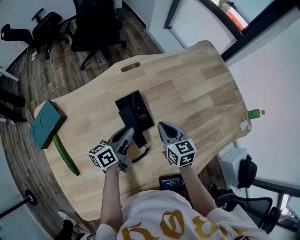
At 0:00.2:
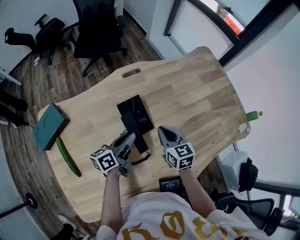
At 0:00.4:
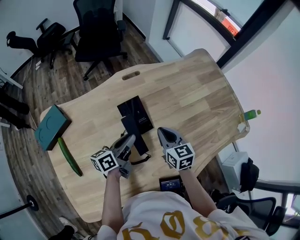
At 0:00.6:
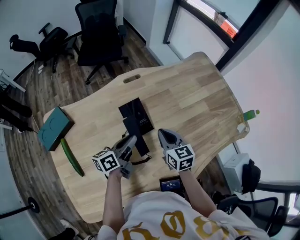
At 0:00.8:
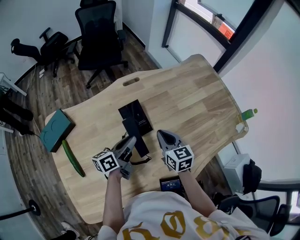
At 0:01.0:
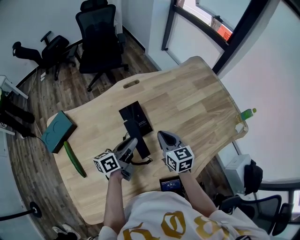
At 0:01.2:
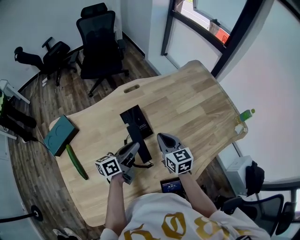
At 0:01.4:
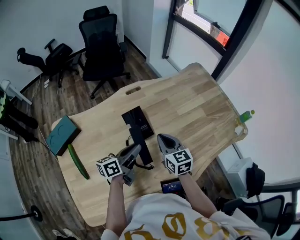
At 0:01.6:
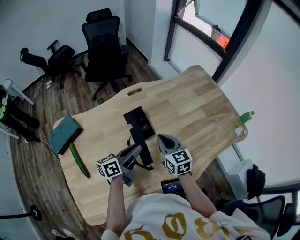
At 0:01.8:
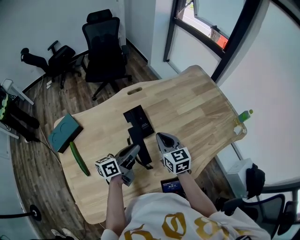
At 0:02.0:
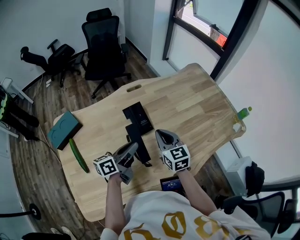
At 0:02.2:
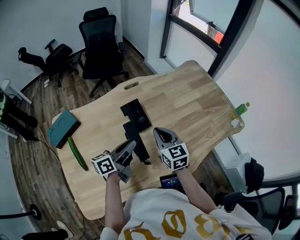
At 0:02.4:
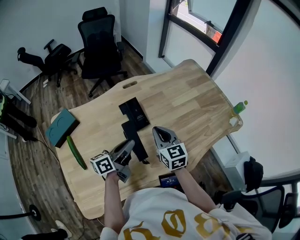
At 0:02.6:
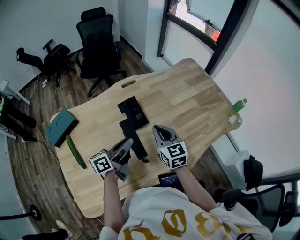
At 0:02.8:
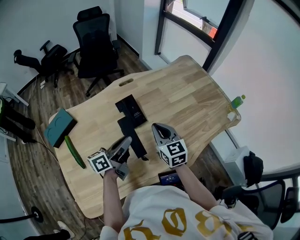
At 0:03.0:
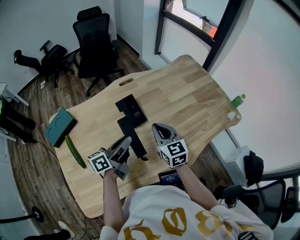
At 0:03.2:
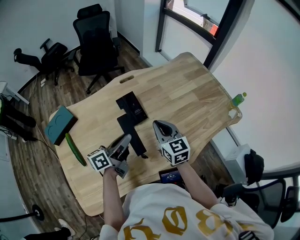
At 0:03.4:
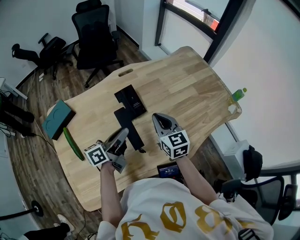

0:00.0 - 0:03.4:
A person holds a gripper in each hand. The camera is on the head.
0:00.0 - 0:01.6: The left gripper moves backward and upward, about 10 cm. Meanwhile the right gripper goes about 10 cm upward and backward.
0:01.6 - 0:03.4: The grippers move only a little.

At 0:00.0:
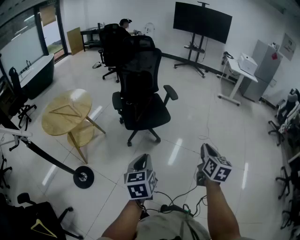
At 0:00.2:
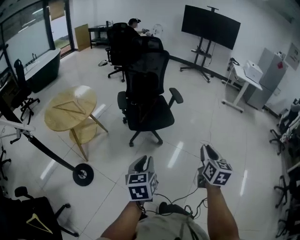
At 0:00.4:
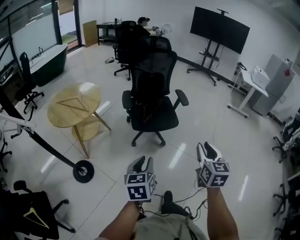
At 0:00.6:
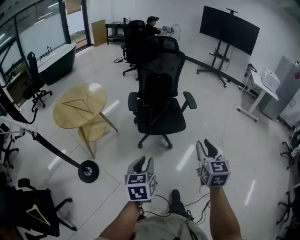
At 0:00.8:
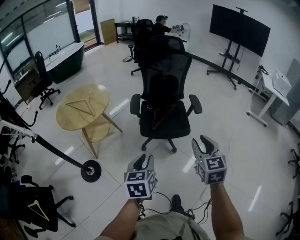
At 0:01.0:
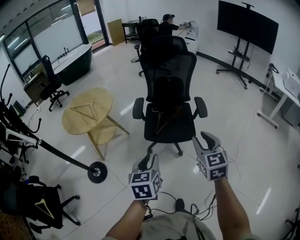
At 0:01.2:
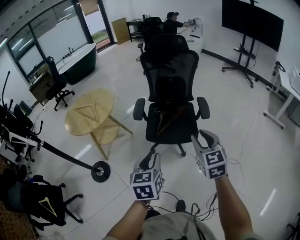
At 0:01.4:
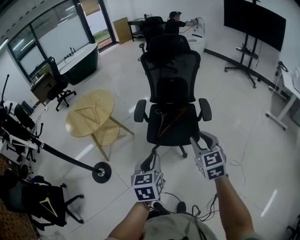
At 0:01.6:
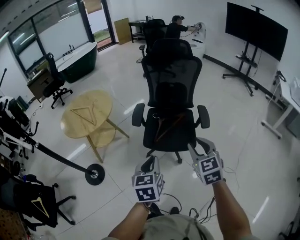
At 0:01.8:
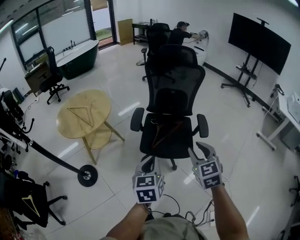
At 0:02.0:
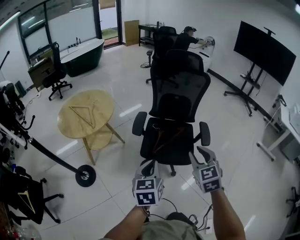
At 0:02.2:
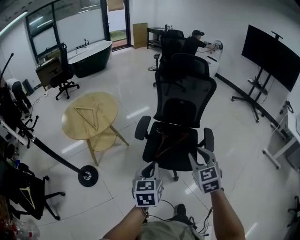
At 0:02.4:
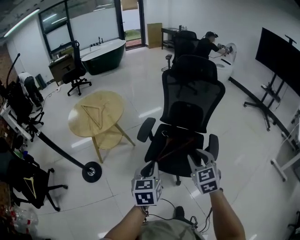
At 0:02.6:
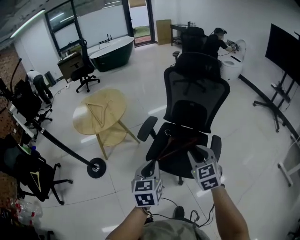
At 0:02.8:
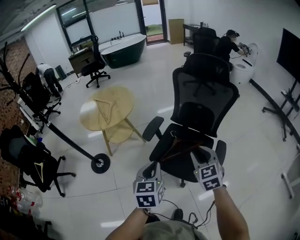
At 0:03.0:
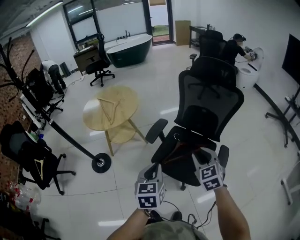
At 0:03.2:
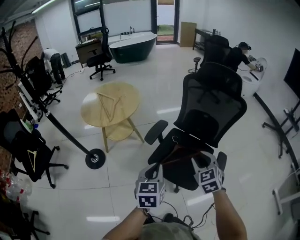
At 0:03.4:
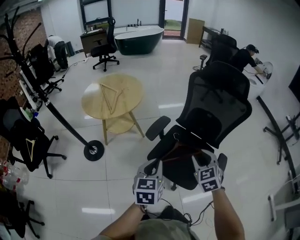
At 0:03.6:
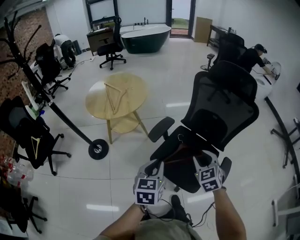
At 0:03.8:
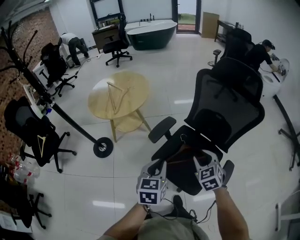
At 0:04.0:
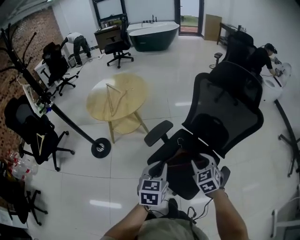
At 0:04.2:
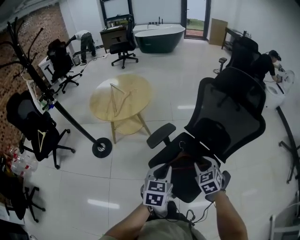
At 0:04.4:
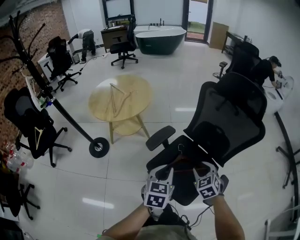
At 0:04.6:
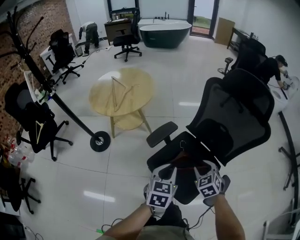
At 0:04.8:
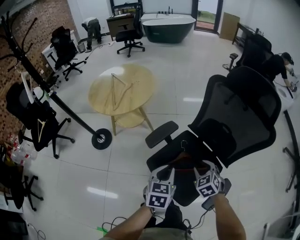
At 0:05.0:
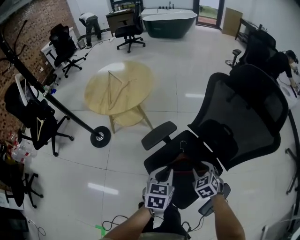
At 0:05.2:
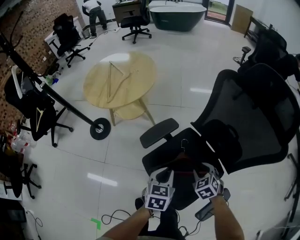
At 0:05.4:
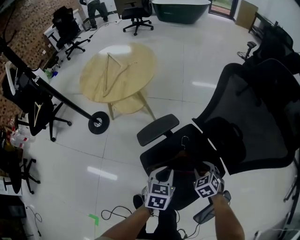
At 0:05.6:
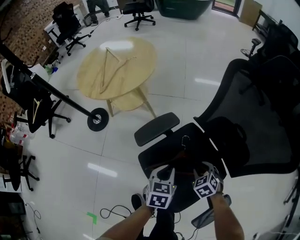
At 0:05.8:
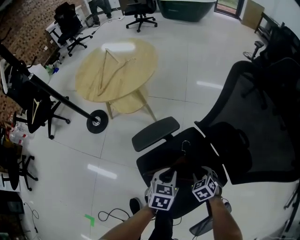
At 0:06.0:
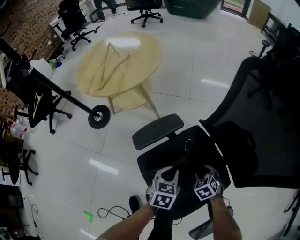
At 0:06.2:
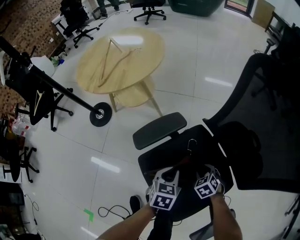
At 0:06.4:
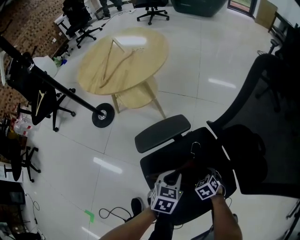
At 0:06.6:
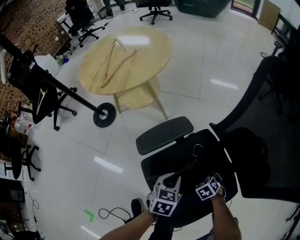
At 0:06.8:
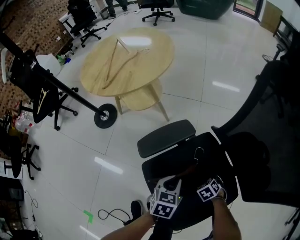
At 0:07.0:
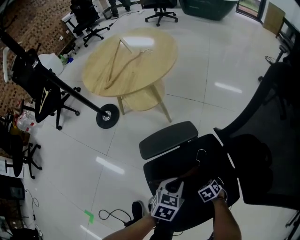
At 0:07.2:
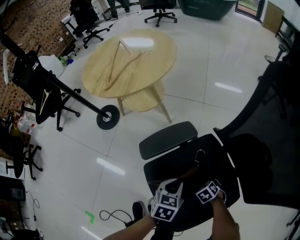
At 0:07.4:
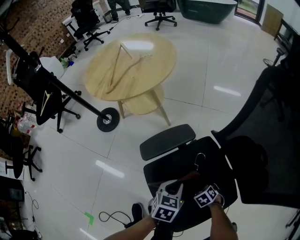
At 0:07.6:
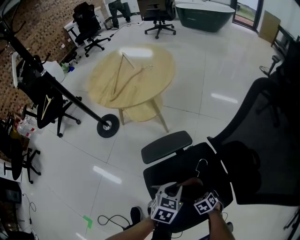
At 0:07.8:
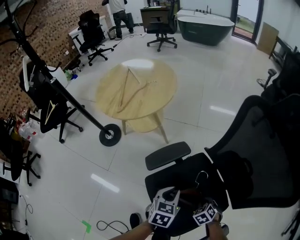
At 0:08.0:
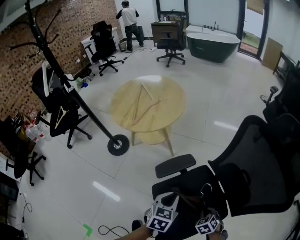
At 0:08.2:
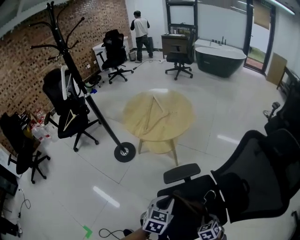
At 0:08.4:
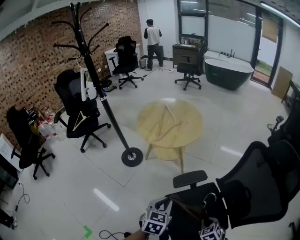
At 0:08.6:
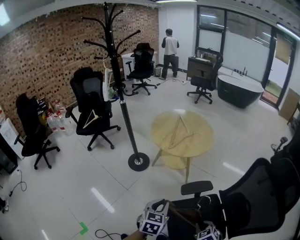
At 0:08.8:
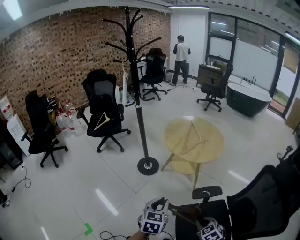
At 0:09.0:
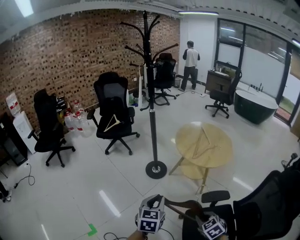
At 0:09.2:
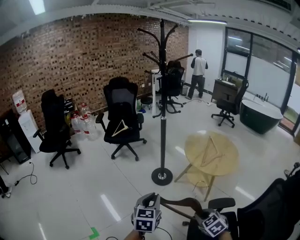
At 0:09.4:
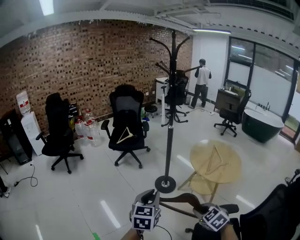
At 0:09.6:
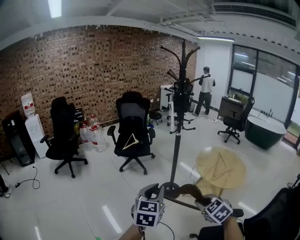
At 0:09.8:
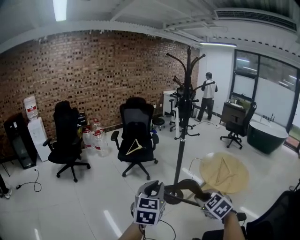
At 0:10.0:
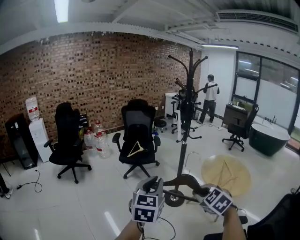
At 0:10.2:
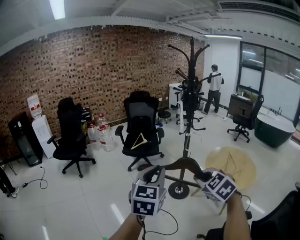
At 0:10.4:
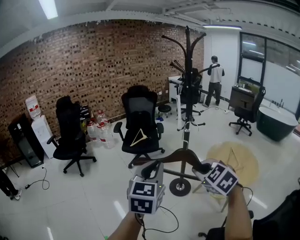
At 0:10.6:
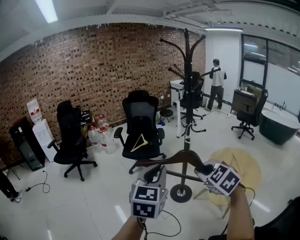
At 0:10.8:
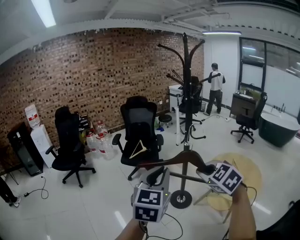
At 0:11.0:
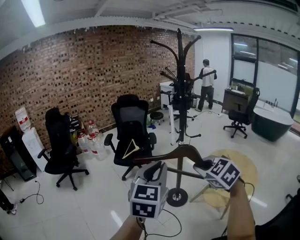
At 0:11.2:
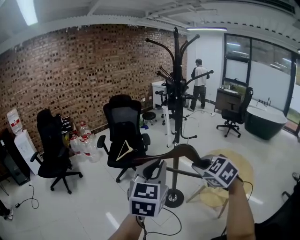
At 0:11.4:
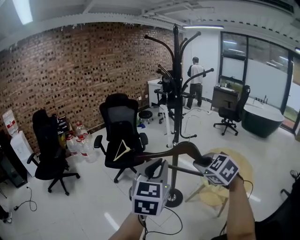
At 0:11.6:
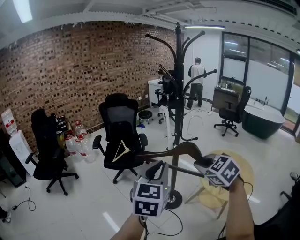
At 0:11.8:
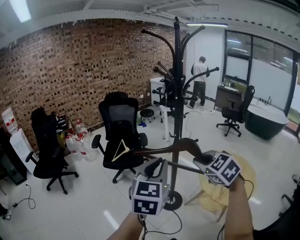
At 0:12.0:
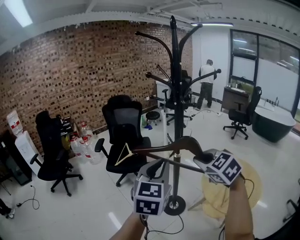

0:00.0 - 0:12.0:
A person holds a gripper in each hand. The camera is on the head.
0:00.0 - 0:01.6: Both grippers are carried some 50 cm. The left gripper rotates some 20 degrees; the right gripper swivels roughly 50 degrees, and opens its fingers.
0:01.6 - 0:03.0: The grippers both shift forward and to the right by some 30 cm. The left gripper changes its angle by approximately 20 degrees. Meanwhile the right gripper changes its angle by approximately 30 degrees.
0:03.0 - 0:04.4: The left gripper is displaced forward and to the right by approximately 25 cm. The right gripper moves forward and downward, roughly 25 cm, and changes its angle by approximately 20 degrees.
0:04.4 - 0:06.0: The two grippers go about 60 cm downward and forward. The left gripper rotates approximately 20 degrees; the right gripper changes its angle by approximately 30 degrees.
0:06.0 - 0:07.6: The left gripper reaches some 10 cm downward, then returns. Meanwhile the right gripper is displaced downward by approximately 5 cm, and closes.
0:07.6 - 0:09.0: Both grippers are carried roughly 60 cm. The right gripper swivels approximately 40 degrees; the left gripper swivels some 50 degrees.
0:09.0 - 0:10.4: The left gripper moves to the left, upward and forward, some 50 cm, and turns by approximately 20 degrees, while the right gripper shifts about 60 cm forward, to the left and upward, and swivels approximately 30 degrees.
0:10.4 - 0:12.0: The pair of grippers is taken forward, roughly 50 cm.

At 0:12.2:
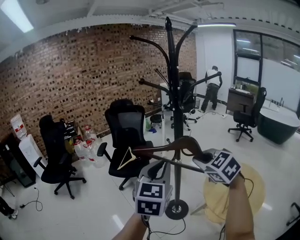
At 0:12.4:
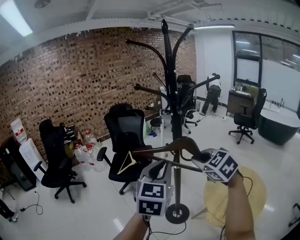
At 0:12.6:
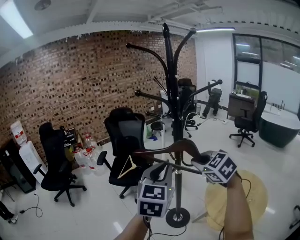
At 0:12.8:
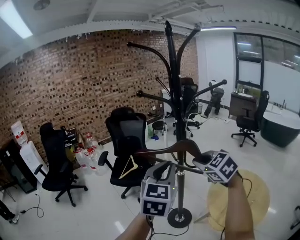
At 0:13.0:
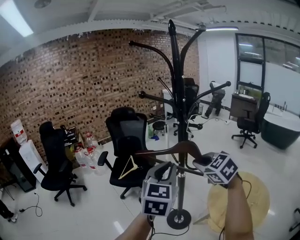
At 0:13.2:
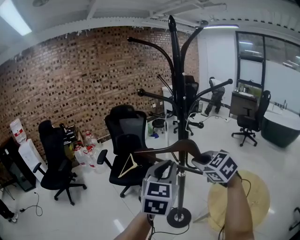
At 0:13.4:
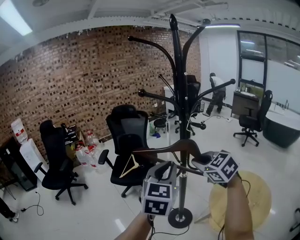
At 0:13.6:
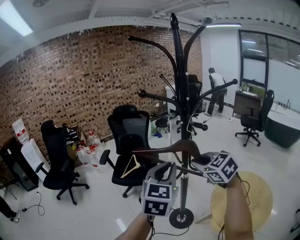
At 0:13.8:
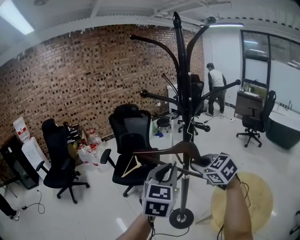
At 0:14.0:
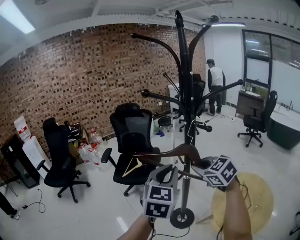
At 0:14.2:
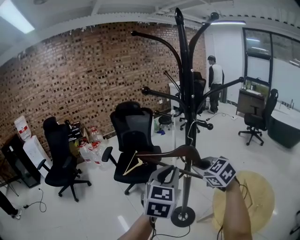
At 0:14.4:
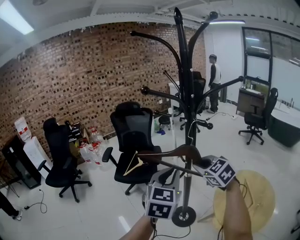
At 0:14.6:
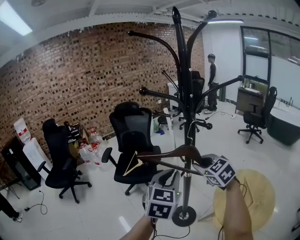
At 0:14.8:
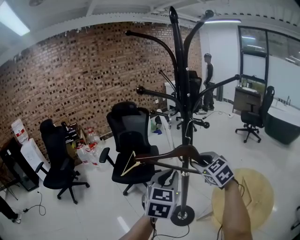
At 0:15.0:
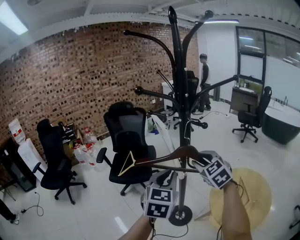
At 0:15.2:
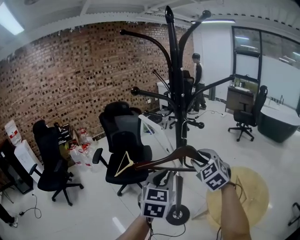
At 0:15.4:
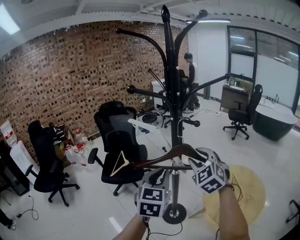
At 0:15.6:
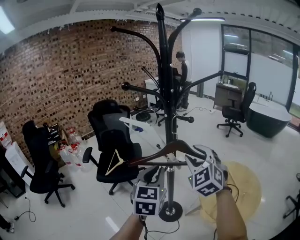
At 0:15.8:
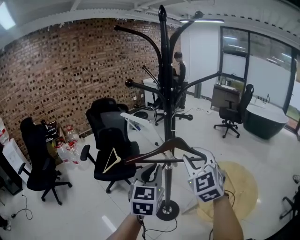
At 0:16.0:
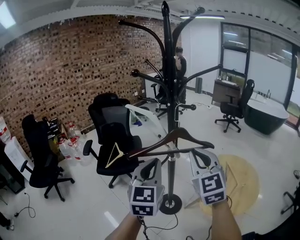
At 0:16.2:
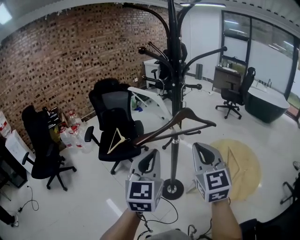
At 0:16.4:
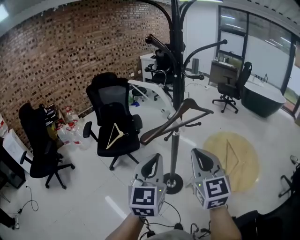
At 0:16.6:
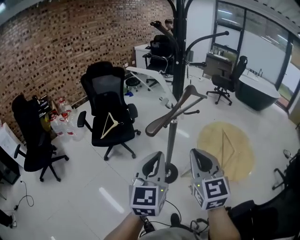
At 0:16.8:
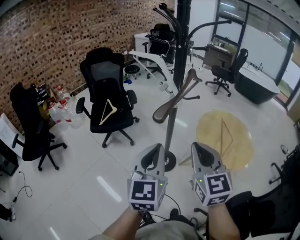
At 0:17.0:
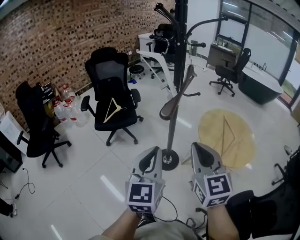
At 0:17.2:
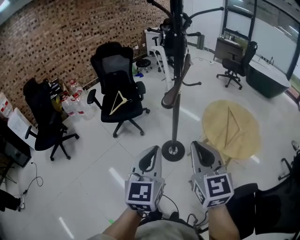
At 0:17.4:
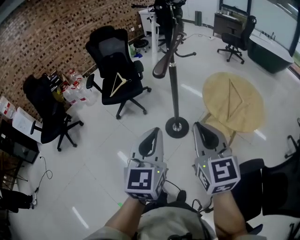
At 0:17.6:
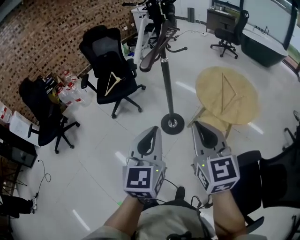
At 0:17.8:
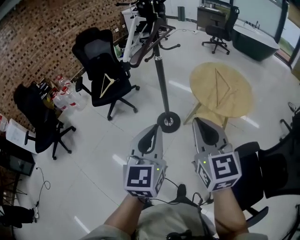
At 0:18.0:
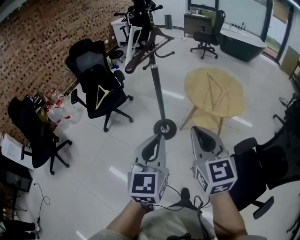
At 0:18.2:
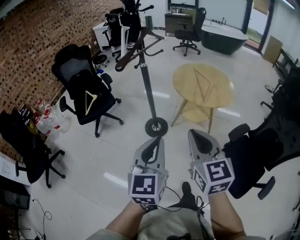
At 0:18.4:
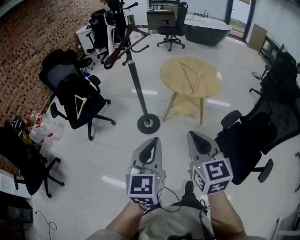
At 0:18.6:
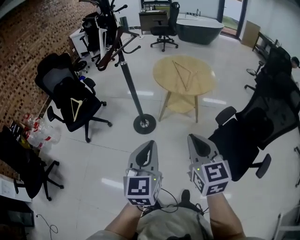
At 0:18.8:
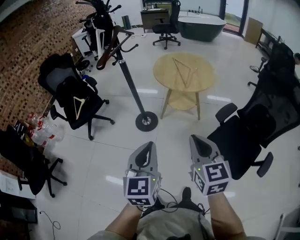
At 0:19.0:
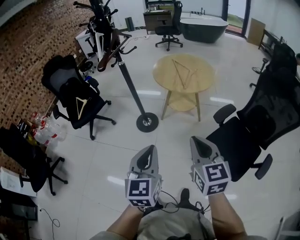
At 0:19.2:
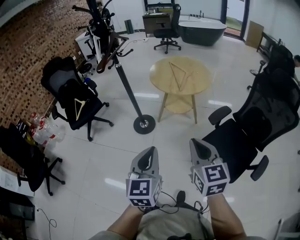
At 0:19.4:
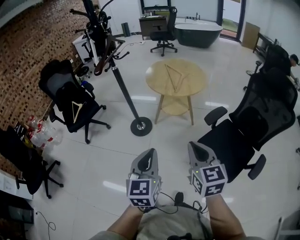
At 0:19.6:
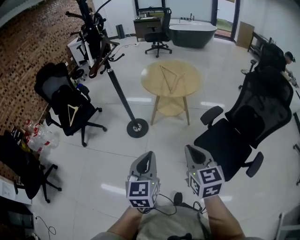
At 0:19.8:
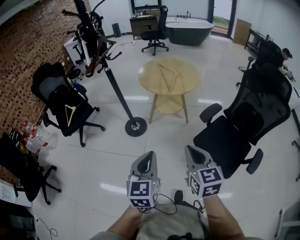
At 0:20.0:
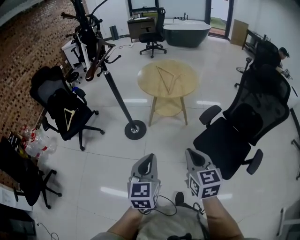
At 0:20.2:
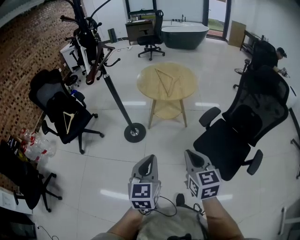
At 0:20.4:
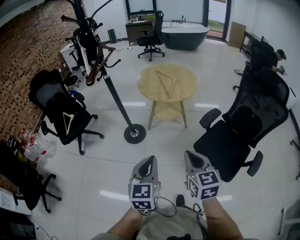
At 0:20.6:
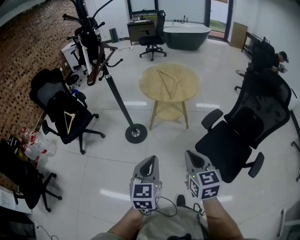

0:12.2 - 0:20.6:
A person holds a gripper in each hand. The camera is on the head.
0:12.2 - 0:13.6: Both grippers move forward, some 20 cm.
0:13.6 - 0:15.0: The right gripper changes place by roughly 5 cm, and opens its fingers; the left gripper moves downward, roughly 5 cm.
0:15.0 - 0:16.4: The right gripper heads backward, covering roughly 30 cm, swivels about 30 degrees, and closes its fingers, while the left gripper shifts approximately 20 cm backward and to the left.
0:16.4 - 0:17.8: The grippers both shift backward and downward by approximately 40 cm.
0:17.8 - 0:19.2: The grippers both shift backward by roughly 30 cm. The left gripper swivels some 20 degrees, while the right gripper turns by about 30 degrees.
0:19.2 - 0:20.6: The grippers make only small movements.
